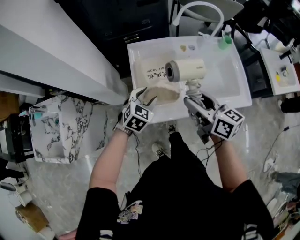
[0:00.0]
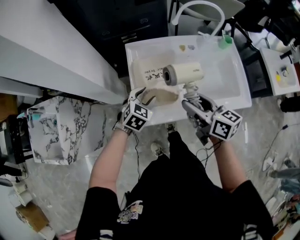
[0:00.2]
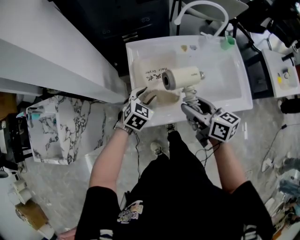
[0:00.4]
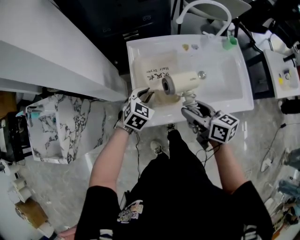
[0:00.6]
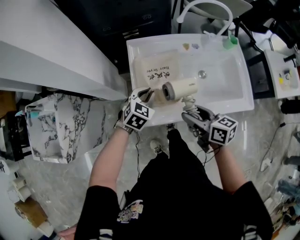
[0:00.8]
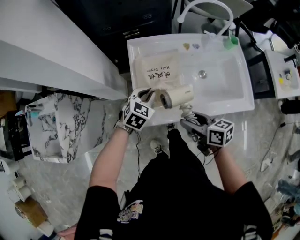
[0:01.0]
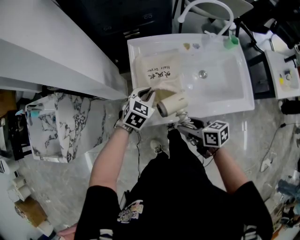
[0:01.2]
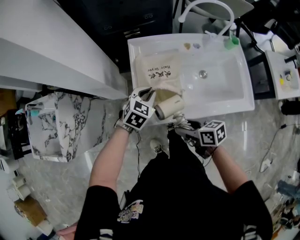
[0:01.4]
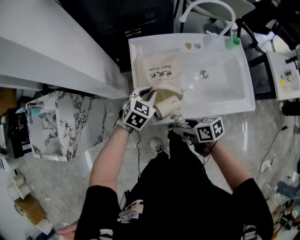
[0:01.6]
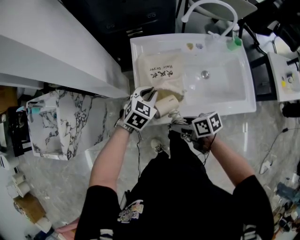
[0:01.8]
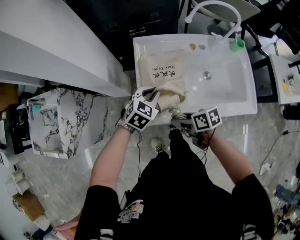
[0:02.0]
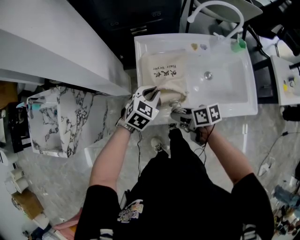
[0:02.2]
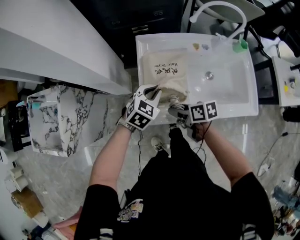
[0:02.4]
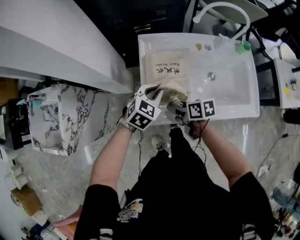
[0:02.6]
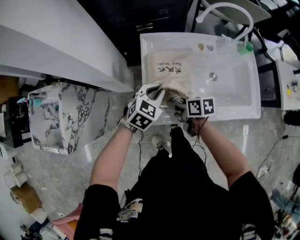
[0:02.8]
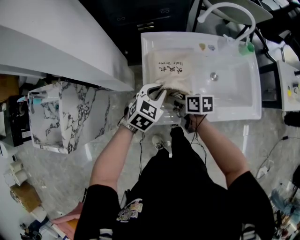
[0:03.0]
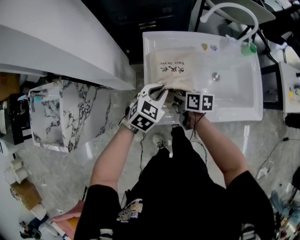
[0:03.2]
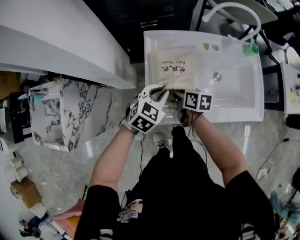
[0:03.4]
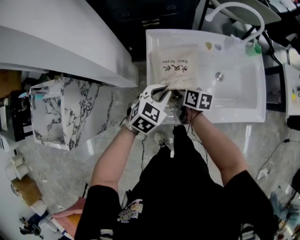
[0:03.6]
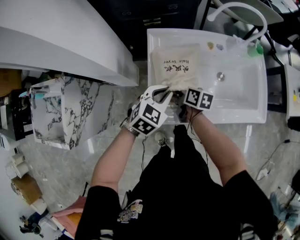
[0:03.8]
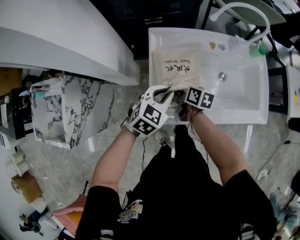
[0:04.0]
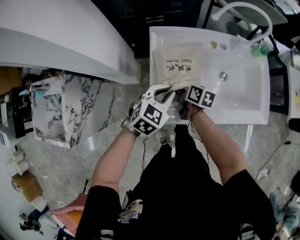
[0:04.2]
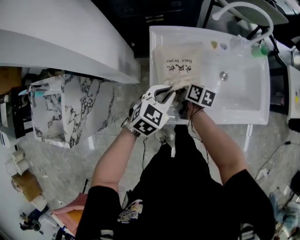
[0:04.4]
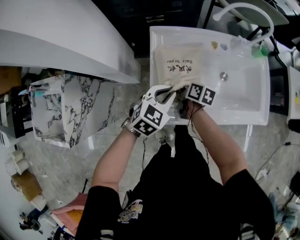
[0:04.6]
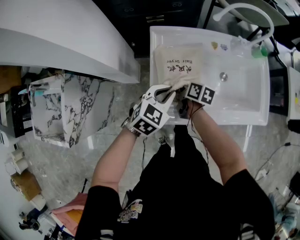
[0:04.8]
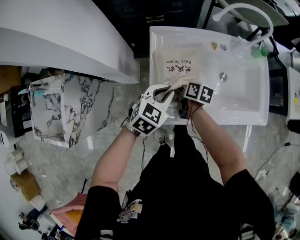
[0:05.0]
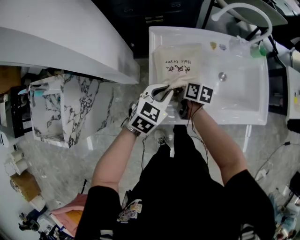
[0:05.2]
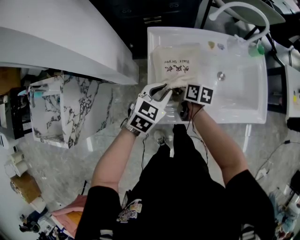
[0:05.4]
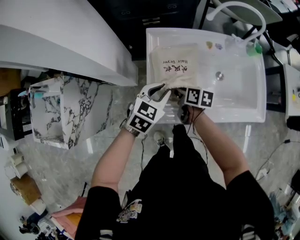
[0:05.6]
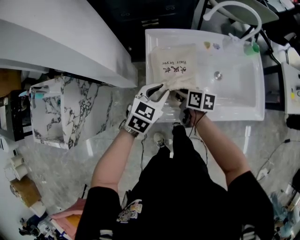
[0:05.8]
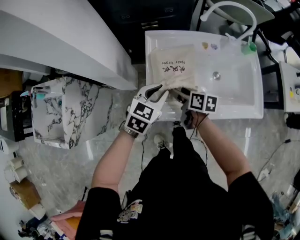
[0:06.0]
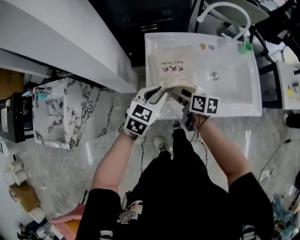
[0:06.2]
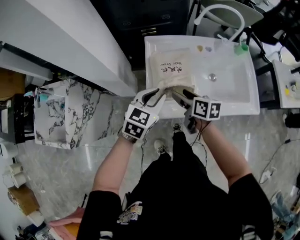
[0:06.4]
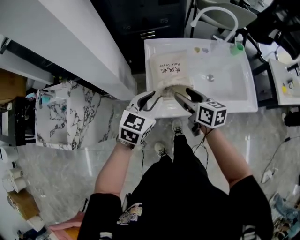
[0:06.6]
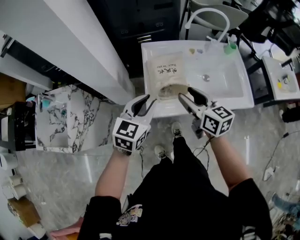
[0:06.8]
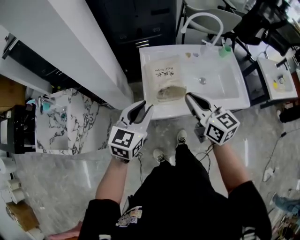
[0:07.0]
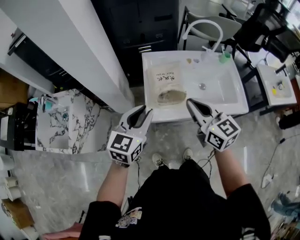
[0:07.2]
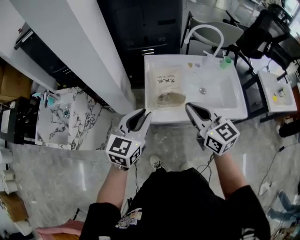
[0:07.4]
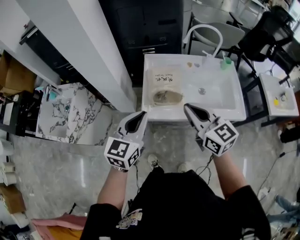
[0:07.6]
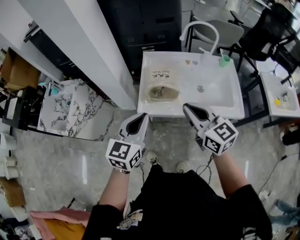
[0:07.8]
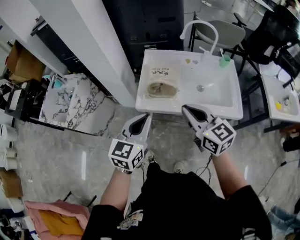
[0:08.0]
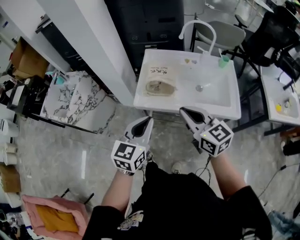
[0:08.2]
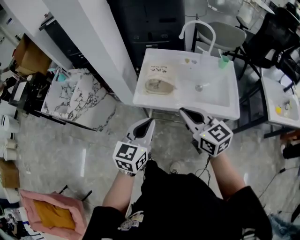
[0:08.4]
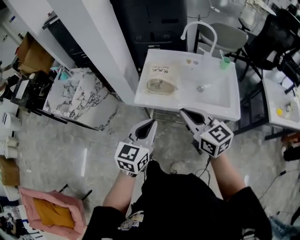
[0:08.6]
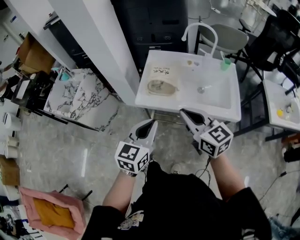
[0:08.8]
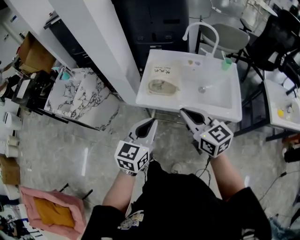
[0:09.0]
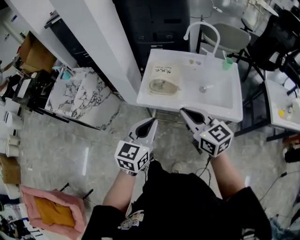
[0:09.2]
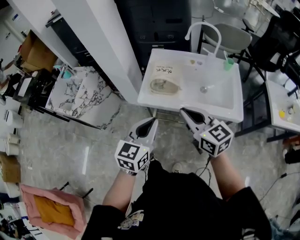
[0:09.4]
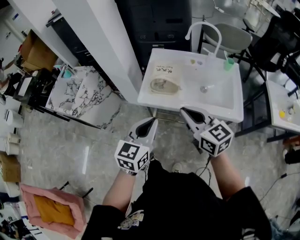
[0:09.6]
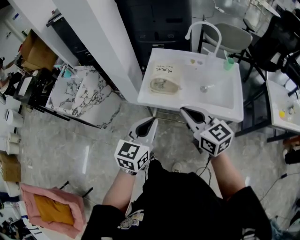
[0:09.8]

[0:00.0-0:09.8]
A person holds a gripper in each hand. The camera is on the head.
0:00.0 to 0:01.4: The right gripper shifts some 20 cm downward and backward, and rotates approximately 30 degrees, while the left gripper closes up.
0:01.4 to 0:02.8: The right gripper travels forward by some 15 cm.
0:02.8 to 0:04.2: The right gripper moves forward, roughly 10 cm, and rotates some 20 degrees.
0:04.2 to 0:05.6: The grippers move only a little.
0:05.6 to 0:07.0: Both grippers move upward and backward, some 25 cm. The left gripper rotates about 20 degrees, while the right gripper changes its angle by roughly 50 degrees, and closes its fingers.
0:07.0 to 0:08.4: The grippers both shift backward and to the right by some 20 cm. The left gripper closes. Meanwhile the right gripper changes its angle by approximately 20 degrees.
0:08.4 to 0:09.8: The two grippers keep their place.

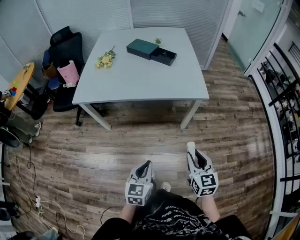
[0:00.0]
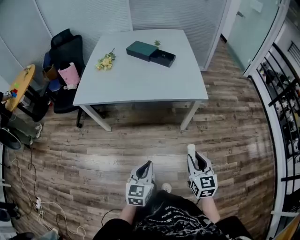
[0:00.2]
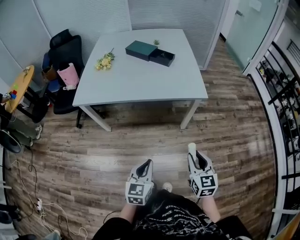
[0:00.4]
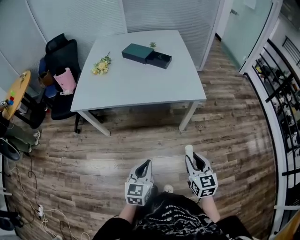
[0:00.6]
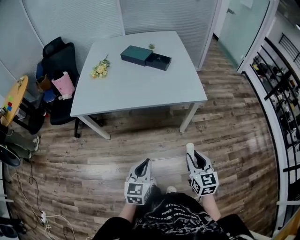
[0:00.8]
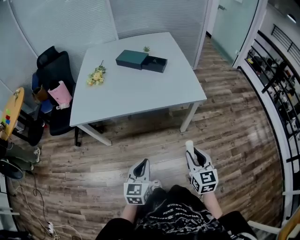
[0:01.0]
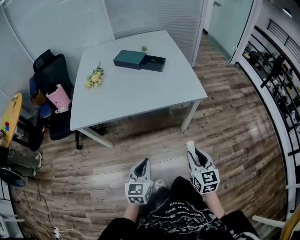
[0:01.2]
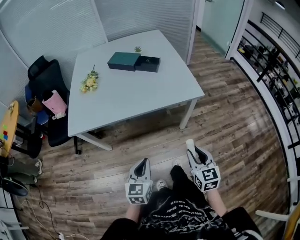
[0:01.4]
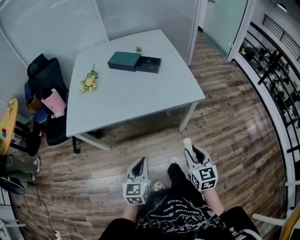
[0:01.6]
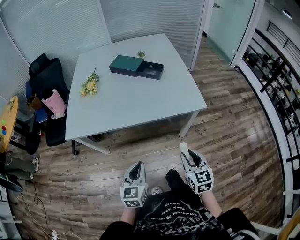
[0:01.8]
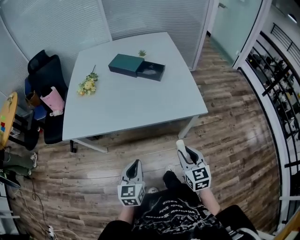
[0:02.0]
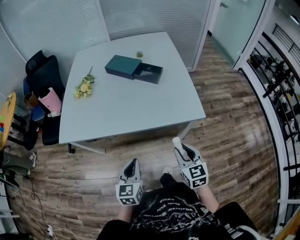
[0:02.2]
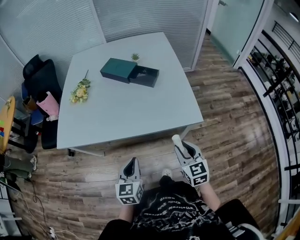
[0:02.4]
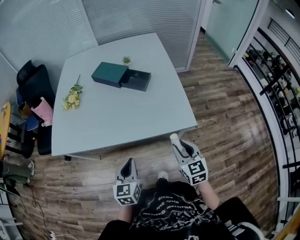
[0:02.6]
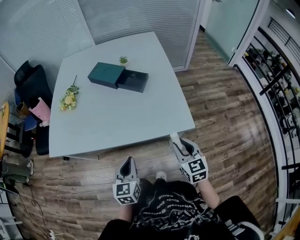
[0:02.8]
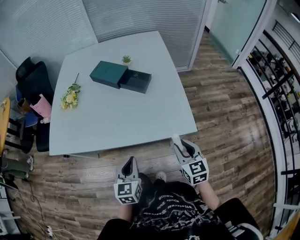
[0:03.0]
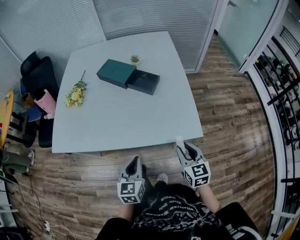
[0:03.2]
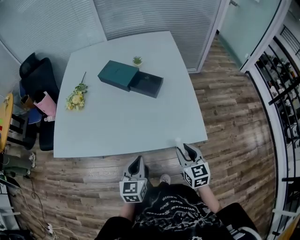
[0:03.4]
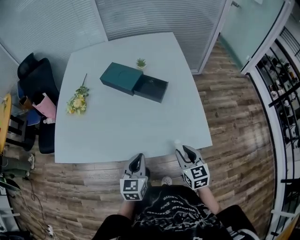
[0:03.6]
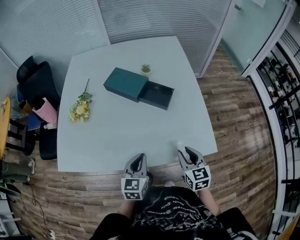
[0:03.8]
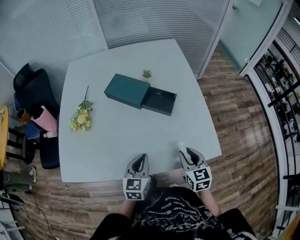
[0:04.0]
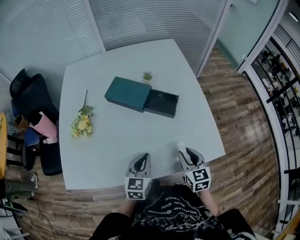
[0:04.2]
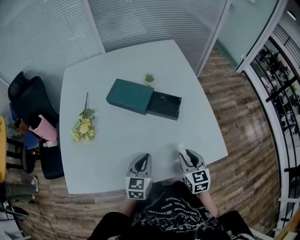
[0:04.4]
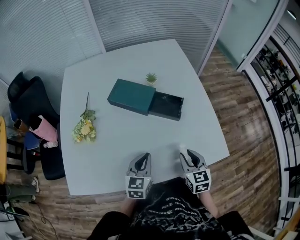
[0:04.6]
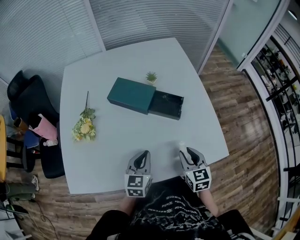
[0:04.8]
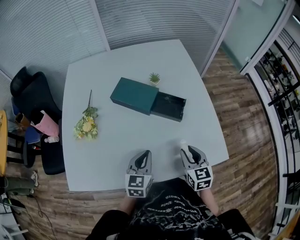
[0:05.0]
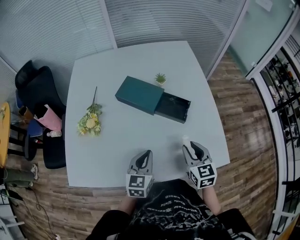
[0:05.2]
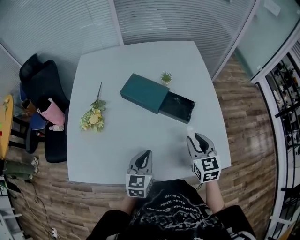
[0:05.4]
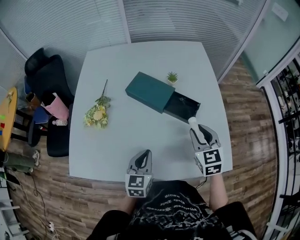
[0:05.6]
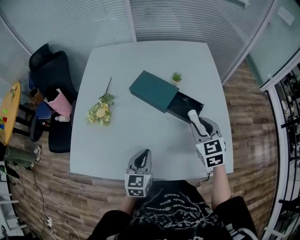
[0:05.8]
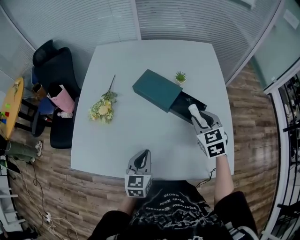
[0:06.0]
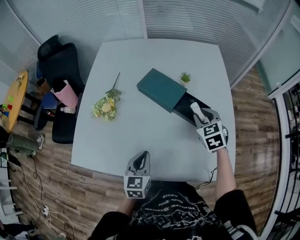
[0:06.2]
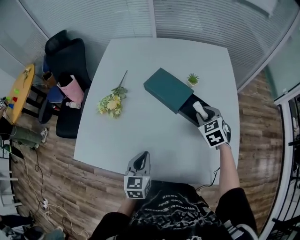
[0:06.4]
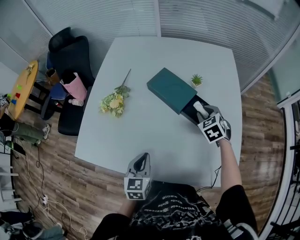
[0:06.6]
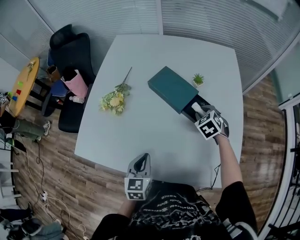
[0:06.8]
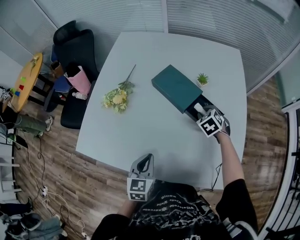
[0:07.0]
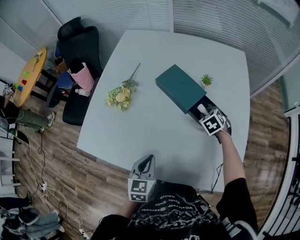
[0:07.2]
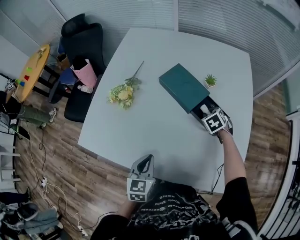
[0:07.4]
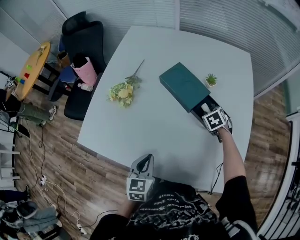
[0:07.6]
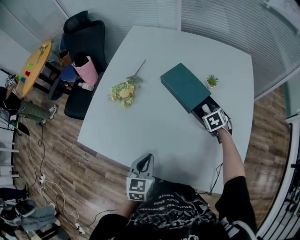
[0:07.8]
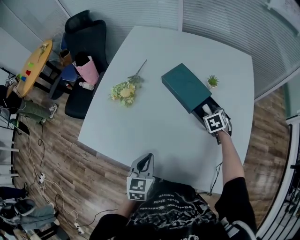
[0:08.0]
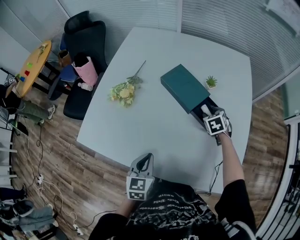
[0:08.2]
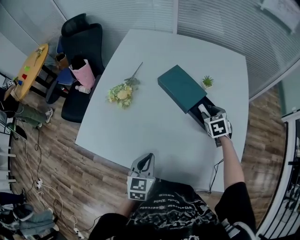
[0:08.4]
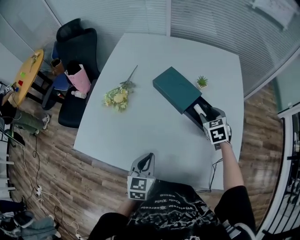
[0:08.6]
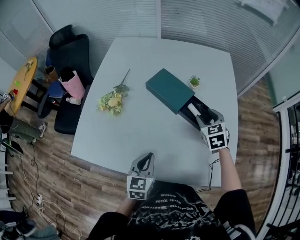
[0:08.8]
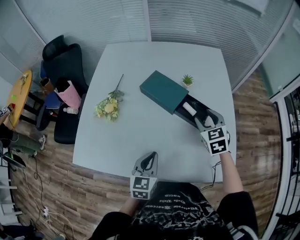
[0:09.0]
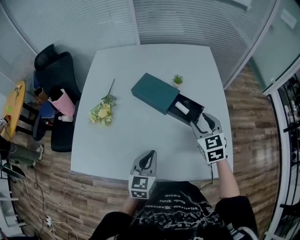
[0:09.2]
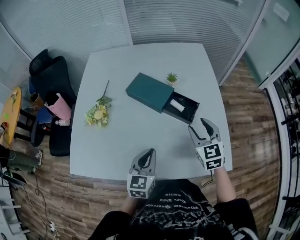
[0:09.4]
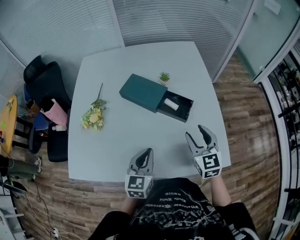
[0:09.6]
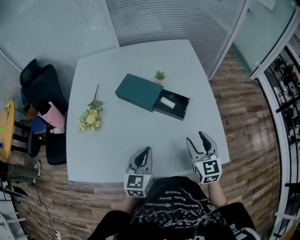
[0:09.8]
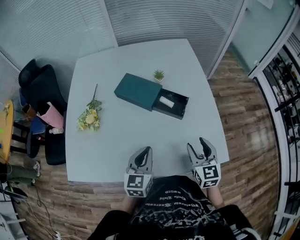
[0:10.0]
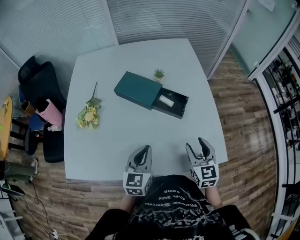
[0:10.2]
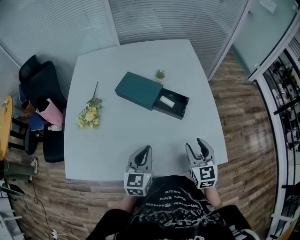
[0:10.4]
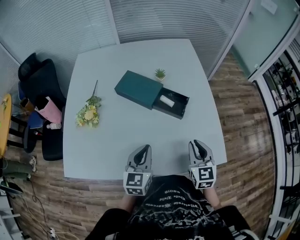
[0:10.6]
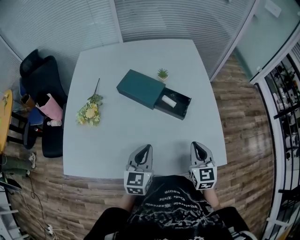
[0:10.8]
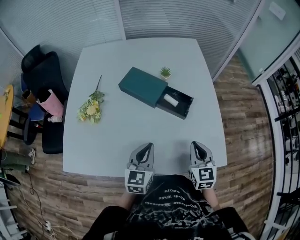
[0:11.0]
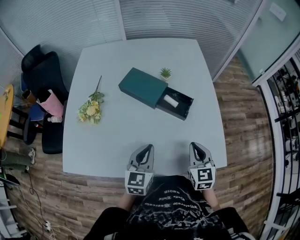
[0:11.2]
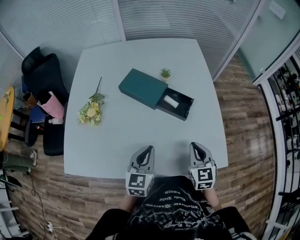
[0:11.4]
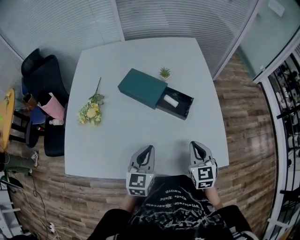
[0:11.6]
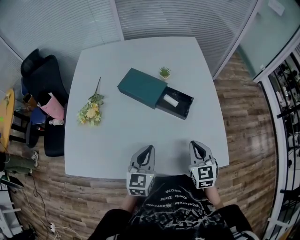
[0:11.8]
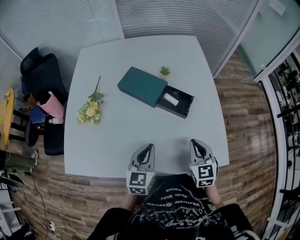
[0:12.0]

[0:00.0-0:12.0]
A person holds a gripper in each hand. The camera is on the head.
0:00.0 to 0:01.6: Both grippers travel together forward and to the left, some 10 cm.
0:01.6 to 0:03.0: Both grippers move forward and to the right, about 25 cm.
0:03.0 to 0:04.4: Both grippers travel together forward and to the left, approximately 25 cm.
0:04.4 to 0:06.0: The right gripper moves forward and upward, approximately 20 cm, and swivels about 30 degrees. The left gripper heads to the left, covering roughly 5 cm.
0:06.0 to 0:07.6: The right gripper travels downward and forward by about 20 cm, and turns by roughly 30 degrees.
0:07.6 to 0:09.0: The right gripper shifts roughly 20 cm upward and backward, swivels approximately 30 degrees, and opens its fingers.
0:09.0 to 0:10.4: The right gripper moves backward, roughly 20 cm, and rotates about 20 degrees.
0:10.4 to 0:12.0: The right gripper closes.

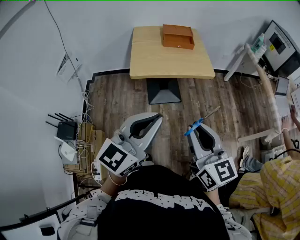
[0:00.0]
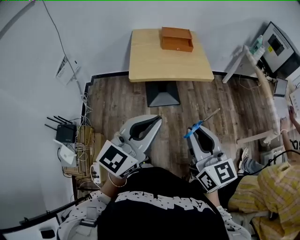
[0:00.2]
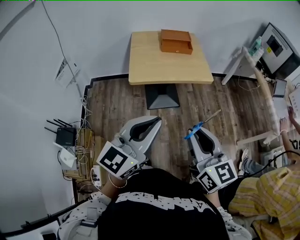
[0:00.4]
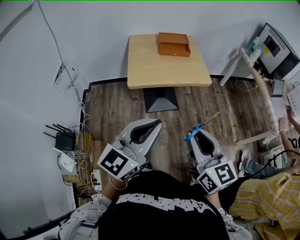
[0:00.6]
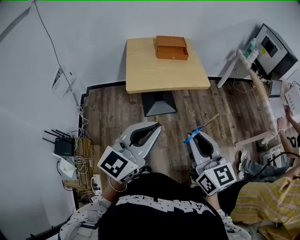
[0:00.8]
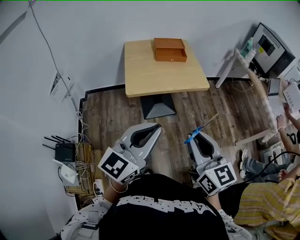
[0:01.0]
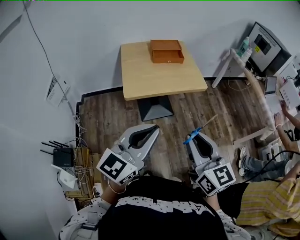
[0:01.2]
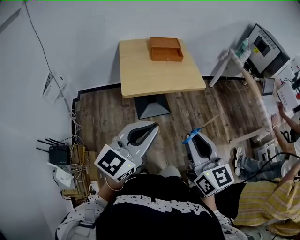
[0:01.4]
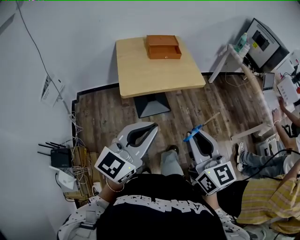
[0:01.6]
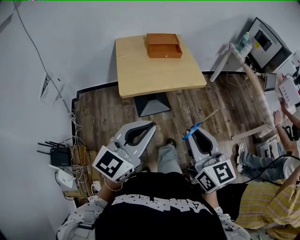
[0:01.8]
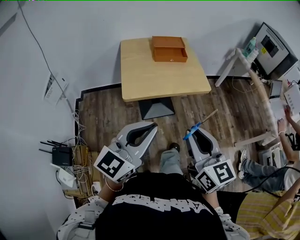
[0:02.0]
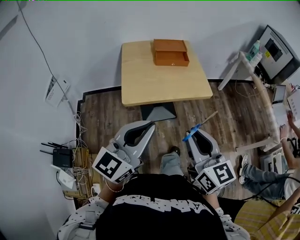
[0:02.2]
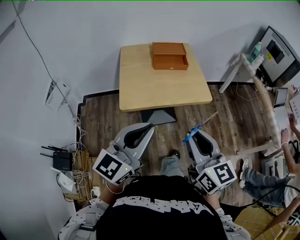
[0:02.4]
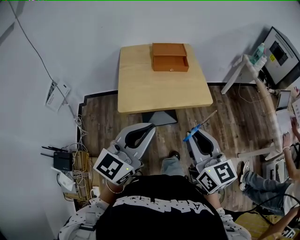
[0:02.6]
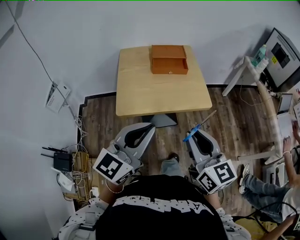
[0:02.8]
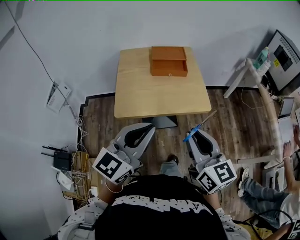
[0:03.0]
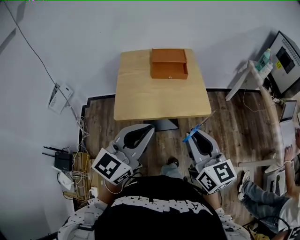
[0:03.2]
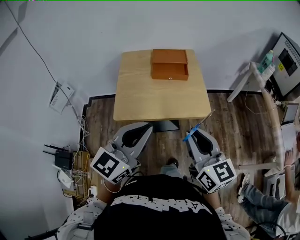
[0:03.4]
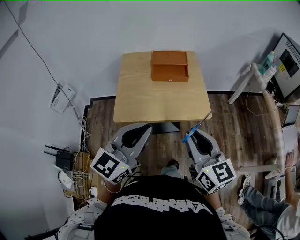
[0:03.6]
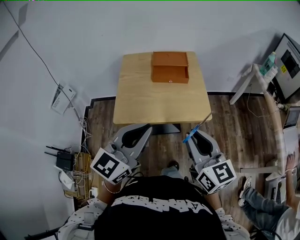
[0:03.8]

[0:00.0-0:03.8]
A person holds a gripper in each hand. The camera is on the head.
0:00.0 to 0:01.2: The left gripper changes place by roughly 5 cm; the right gripper moves approximately 5 cm.
0:01.2 to 0:02.6: The two grippers go approximately 15 cm forward.
0:02.6 to 0:03.8: Both grippers travel together forward and to the right, about 10 cm.
